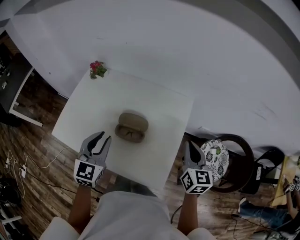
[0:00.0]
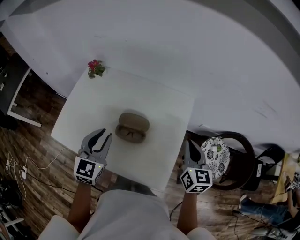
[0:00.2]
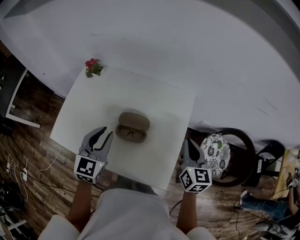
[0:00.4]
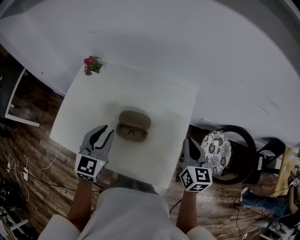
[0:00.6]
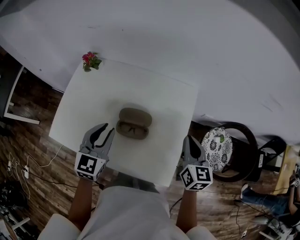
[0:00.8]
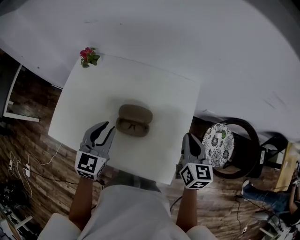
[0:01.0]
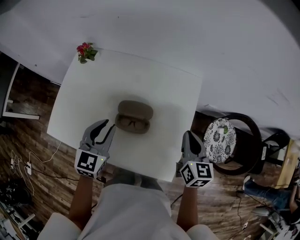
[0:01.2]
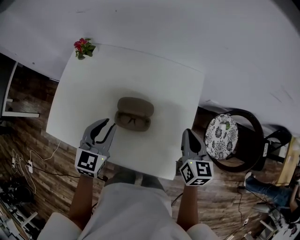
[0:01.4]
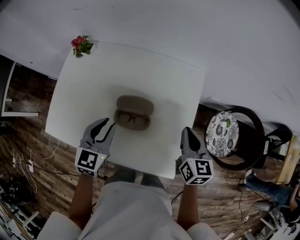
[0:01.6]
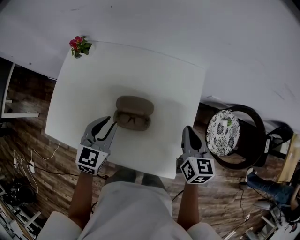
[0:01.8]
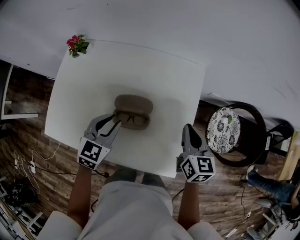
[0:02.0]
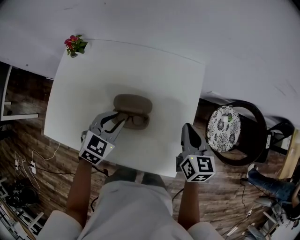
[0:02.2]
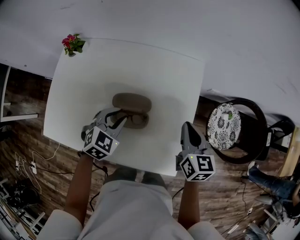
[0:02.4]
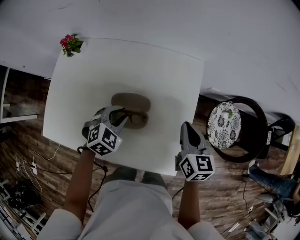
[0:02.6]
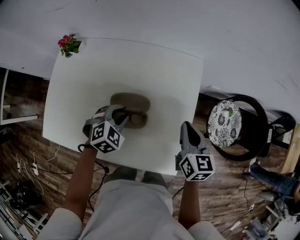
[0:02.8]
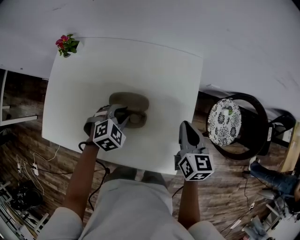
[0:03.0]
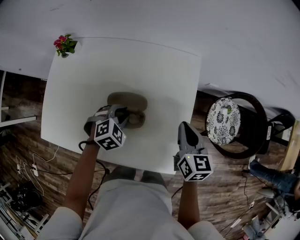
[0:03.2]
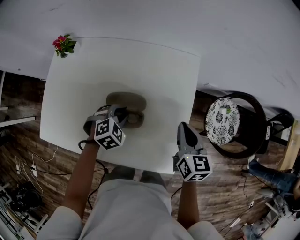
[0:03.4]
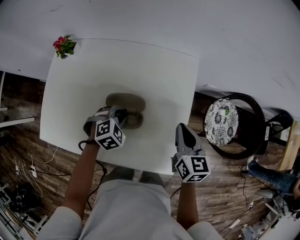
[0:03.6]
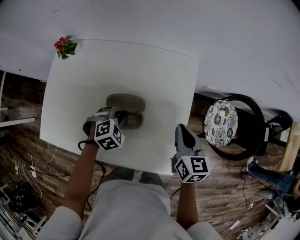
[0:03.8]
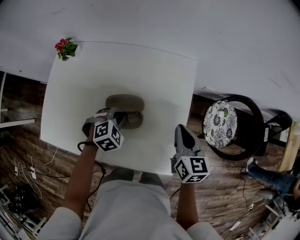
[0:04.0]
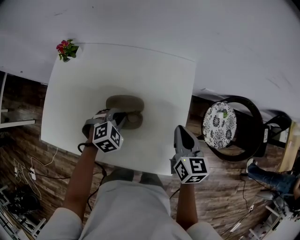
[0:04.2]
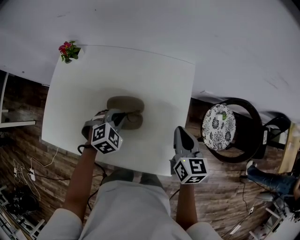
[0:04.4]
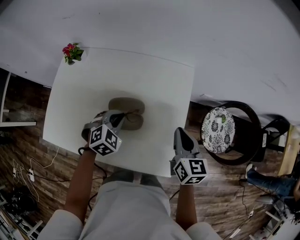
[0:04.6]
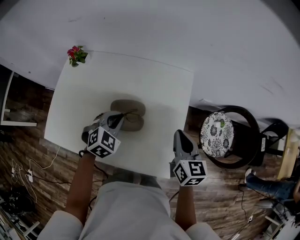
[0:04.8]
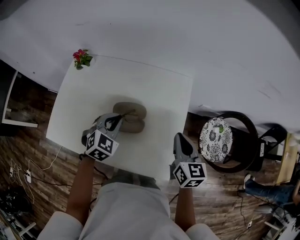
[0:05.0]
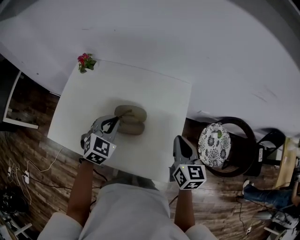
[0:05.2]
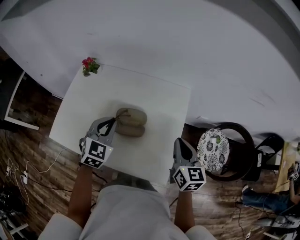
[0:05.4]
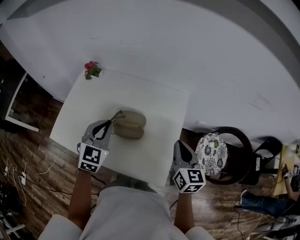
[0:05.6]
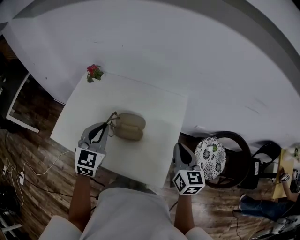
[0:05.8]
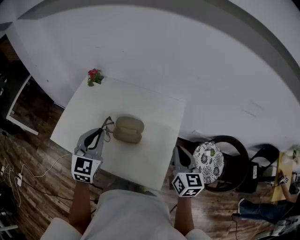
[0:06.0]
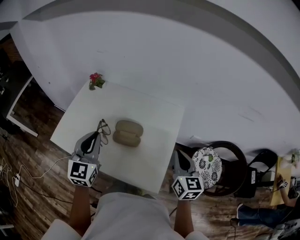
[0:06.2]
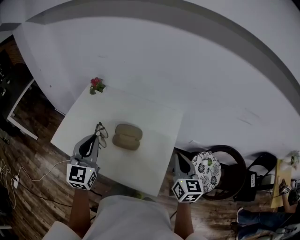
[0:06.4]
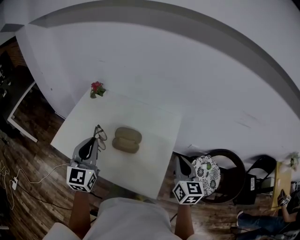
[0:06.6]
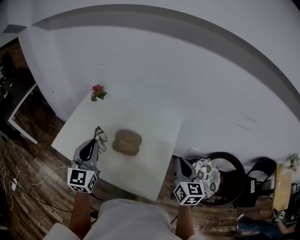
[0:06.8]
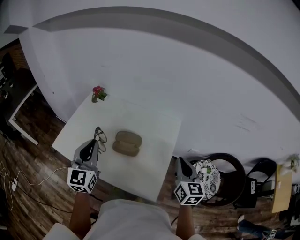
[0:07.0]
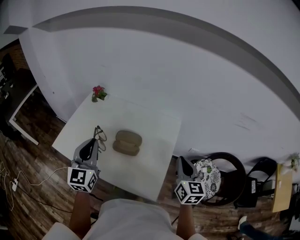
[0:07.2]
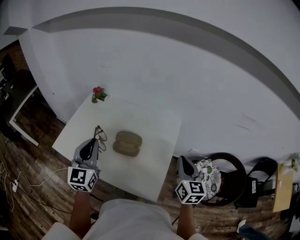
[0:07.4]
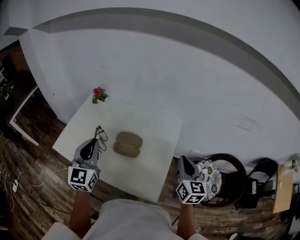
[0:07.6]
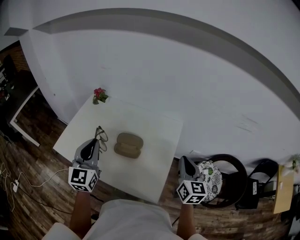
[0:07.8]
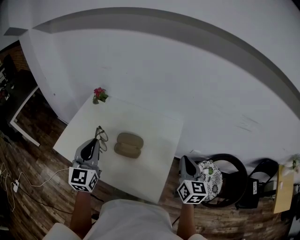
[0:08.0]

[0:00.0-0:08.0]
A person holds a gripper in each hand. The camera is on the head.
0:00.0 to 0:01.6: The left gripper travels downward and forward by about 10 cm; the right gripper travels downward by some 10 cm.
0:01.6 to 0:03.2: The left gripper goes some 15 cm downward and to the right, and angles its fingers downward, by approximately 30 degrees.
0:03.2 to 0:04.8: The right gripper changes place by about 5 cm, while the left gripper heads upward, covering some 10 cm, and closes up.
0:04.8 to 0:06.4: The right gripper travels upward and backward by approximately 10 cm; the left gripper shifts approximately 25 cm upward, backward and to the left, and tips its fingers upward by some 40 degrees.
0:06.4 to 0:08.0: The grippers stay close to where they were, moving slightly.

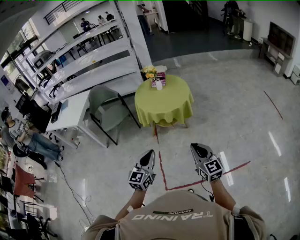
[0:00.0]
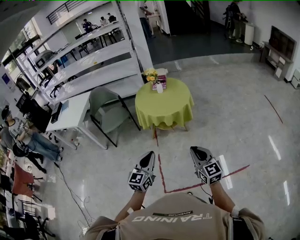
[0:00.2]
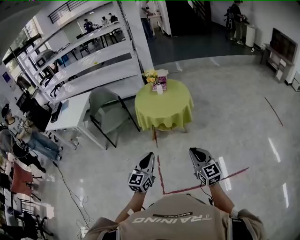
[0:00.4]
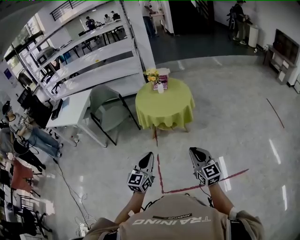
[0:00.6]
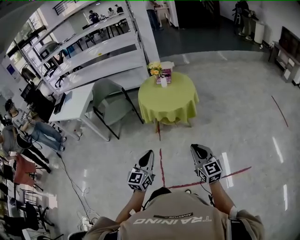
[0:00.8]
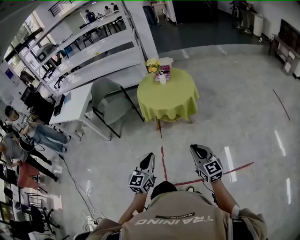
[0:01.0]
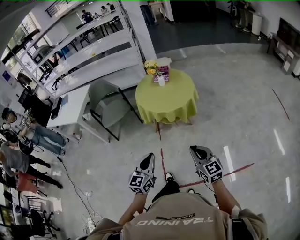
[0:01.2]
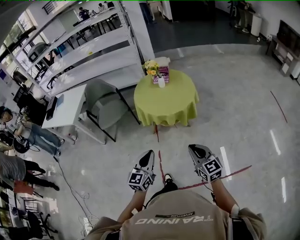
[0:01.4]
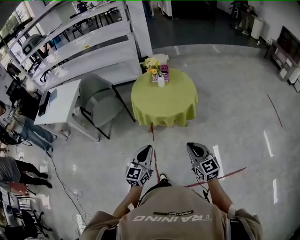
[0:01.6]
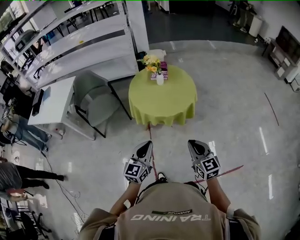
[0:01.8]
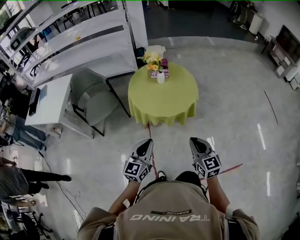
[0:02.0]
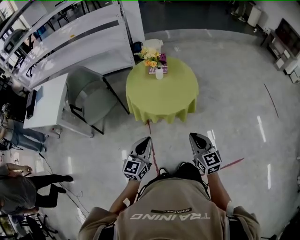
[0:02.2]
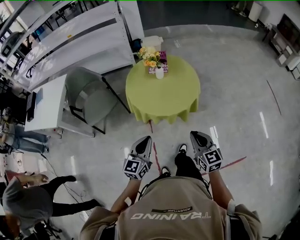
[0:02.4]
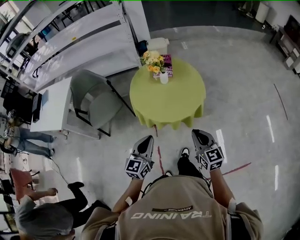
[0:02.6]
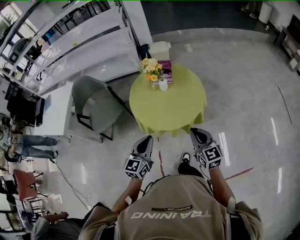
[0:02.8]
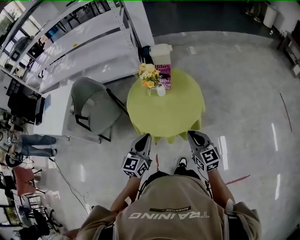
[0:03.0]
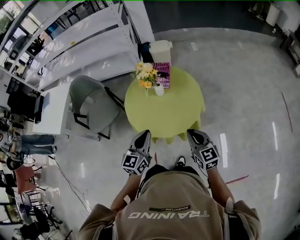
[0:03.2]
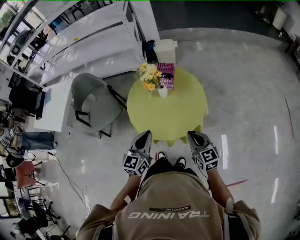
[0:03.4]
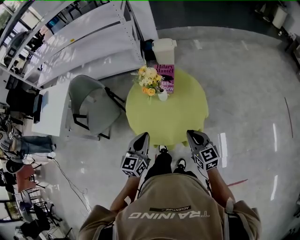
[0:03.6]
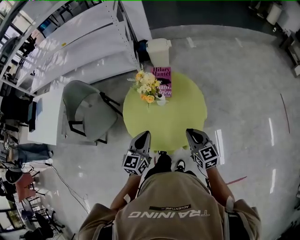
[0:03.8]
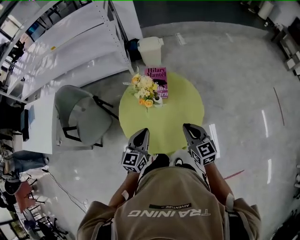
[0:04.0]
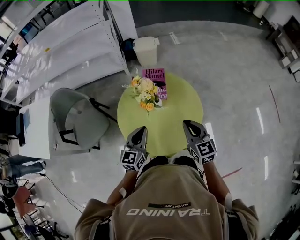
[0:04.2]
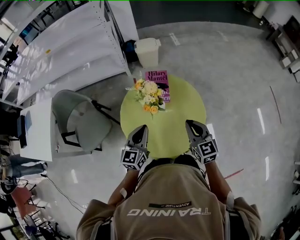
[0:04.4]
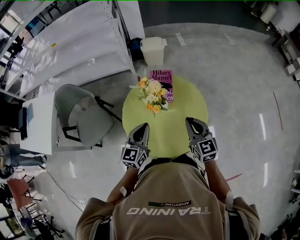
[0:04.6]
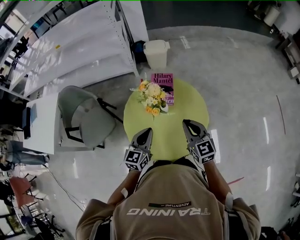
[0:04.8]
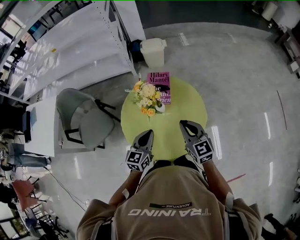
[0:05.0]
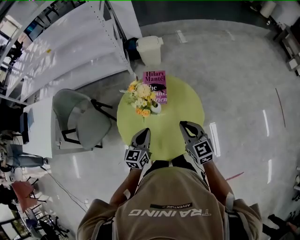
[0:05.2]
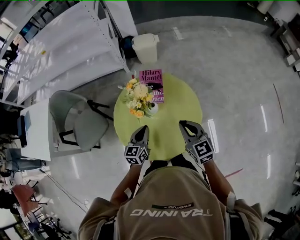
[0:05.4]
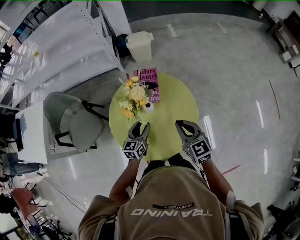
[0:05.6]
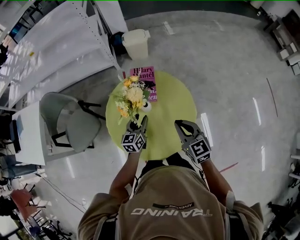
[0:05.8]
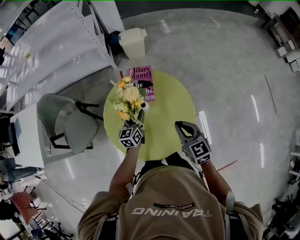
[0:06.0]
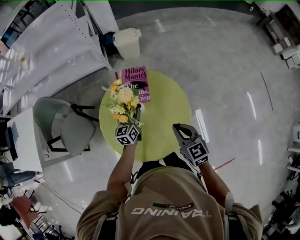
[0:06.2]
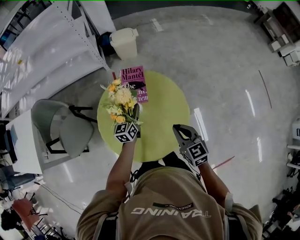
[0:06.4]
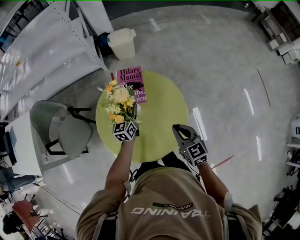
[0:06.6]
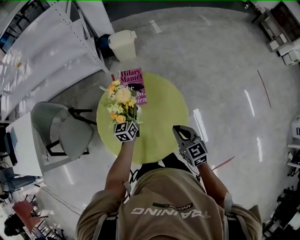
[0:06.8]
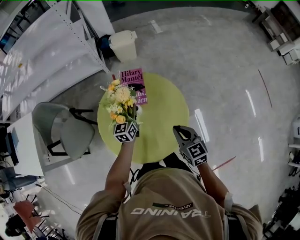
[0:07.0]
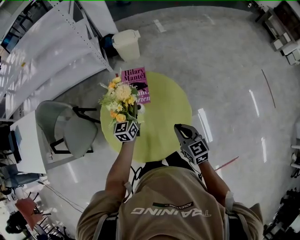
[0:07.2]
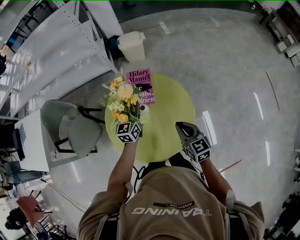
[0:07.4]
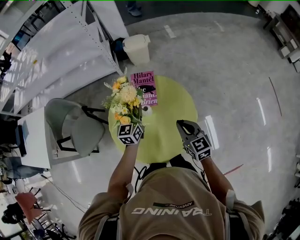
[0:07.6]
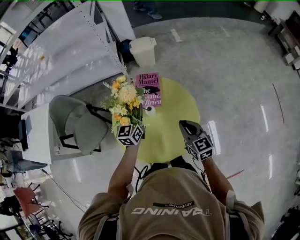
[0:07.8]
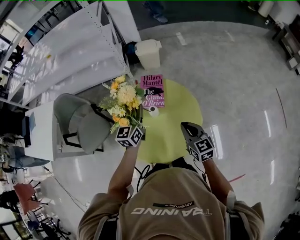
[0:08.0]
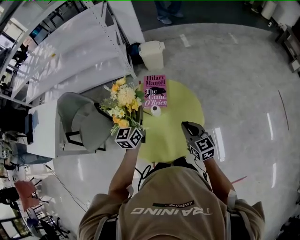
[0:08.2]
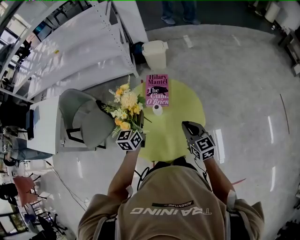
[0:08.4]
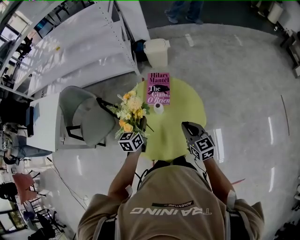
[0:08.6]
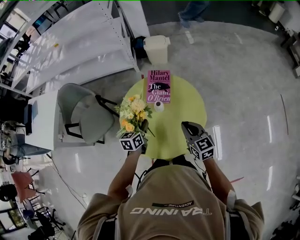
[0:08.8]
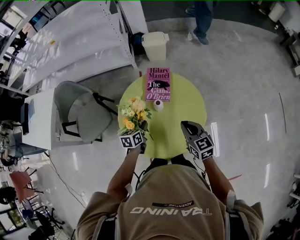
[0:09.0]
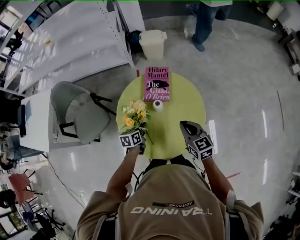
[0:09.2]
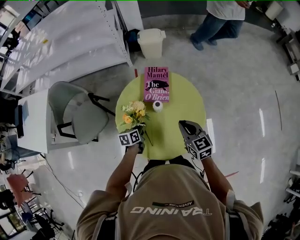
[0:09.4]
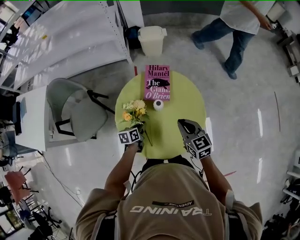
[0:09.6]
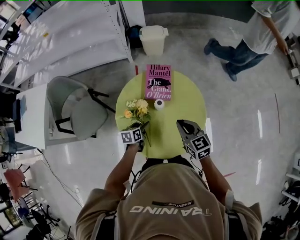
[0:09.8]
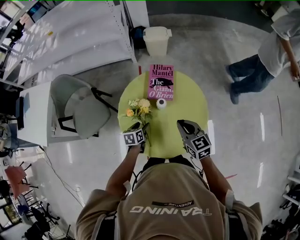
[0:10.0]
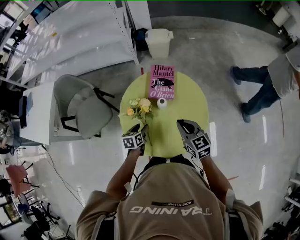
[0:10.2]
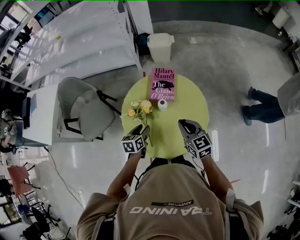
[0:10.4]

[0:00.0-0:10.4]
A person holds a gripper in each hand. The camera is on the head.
0:00.0 to 0:01.4: The grippers both shift forward by roughly 15 cm.
0:01.4 to 0:03.0: The grippers both shift forward by roughly 35 cm.
0:03.0 to 0:04.4: Both grippers move forward, some 25 cm.
0:04.4 to 0:06.0: The right gripper shifts by about 5 cm; the left gripper travels downward and forward by some 20 cm, and opens.
0:06.0 to 0:07.4: The left gripper is displaced upward by some 5 cm, and closes up.
0:07.4 to 0:09.0: The left gripper is displaced backward, downward and to the left by about 15 cm, and rotates approximately 30 degrees.
0:09.0 to 0:10.4: The left gripper travels downward and back again, about 5 cm each way, and opens up.

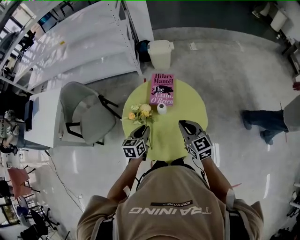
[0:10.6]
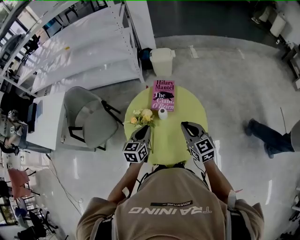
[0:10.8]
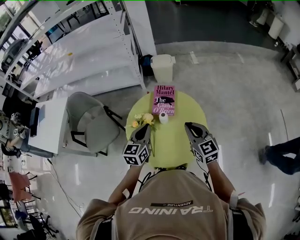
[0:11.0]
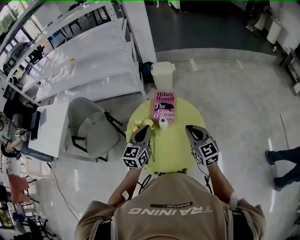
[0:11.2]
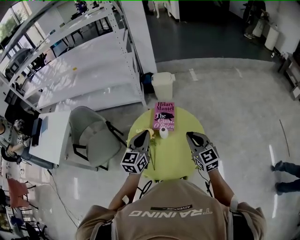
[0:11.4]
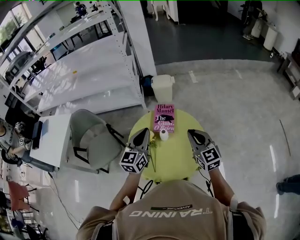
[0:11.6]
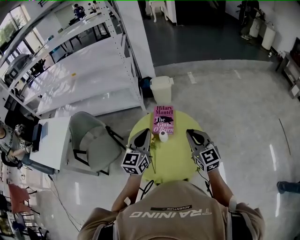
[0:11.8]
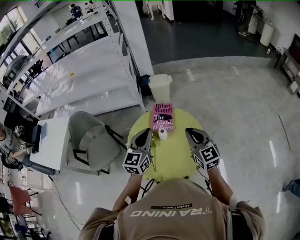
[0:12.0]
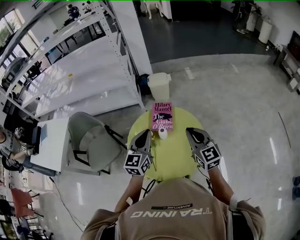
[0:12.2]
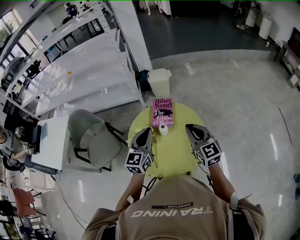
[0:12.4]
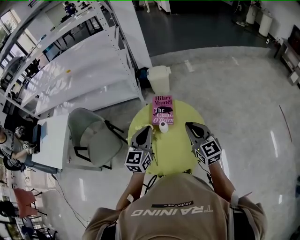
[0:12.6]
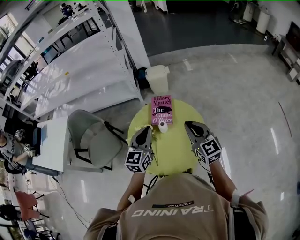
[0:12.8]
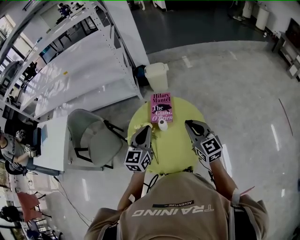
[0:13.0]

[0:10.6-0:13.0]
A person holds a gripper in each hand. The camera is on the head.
0:10.6 to 0:11.8: The left gripper goes approximately 25 cm upward, and turns by approximately 40 degrees. The right gripper goes approximately 15 cm upward.
0:11.8 to 0:13.0: The grippers make only small movements.

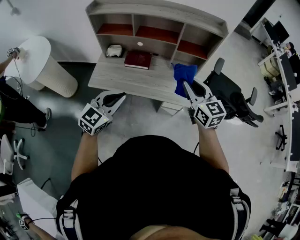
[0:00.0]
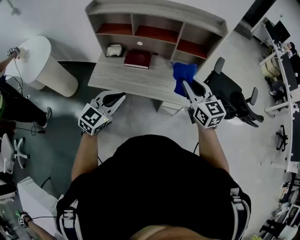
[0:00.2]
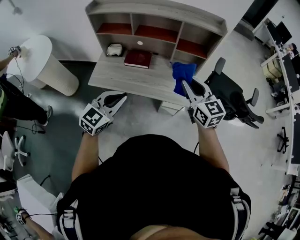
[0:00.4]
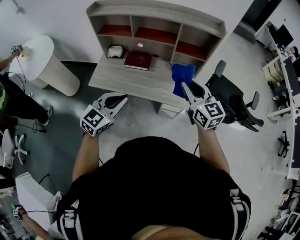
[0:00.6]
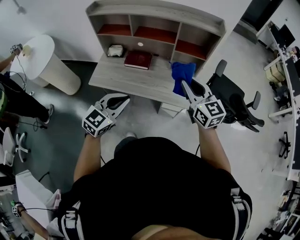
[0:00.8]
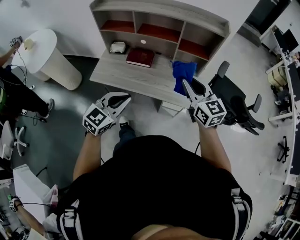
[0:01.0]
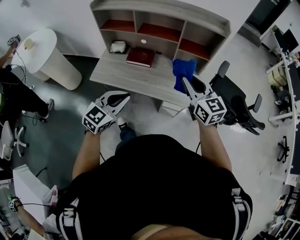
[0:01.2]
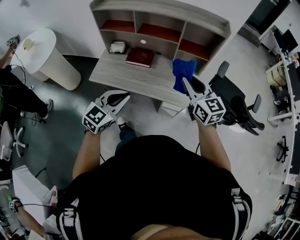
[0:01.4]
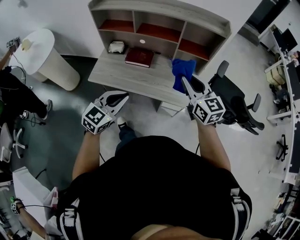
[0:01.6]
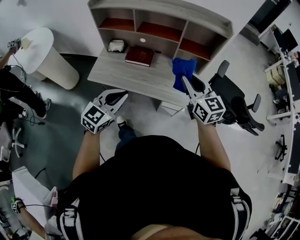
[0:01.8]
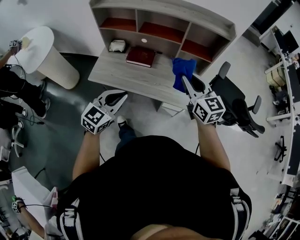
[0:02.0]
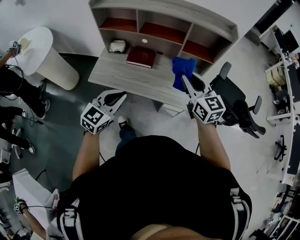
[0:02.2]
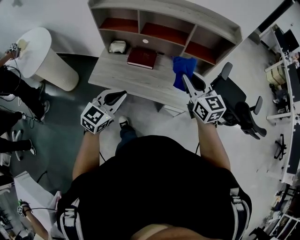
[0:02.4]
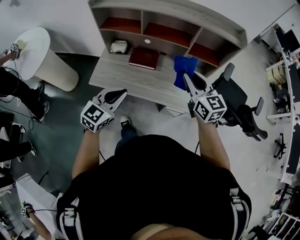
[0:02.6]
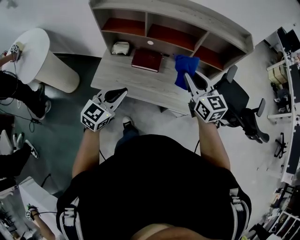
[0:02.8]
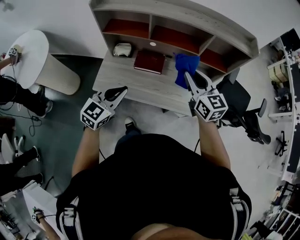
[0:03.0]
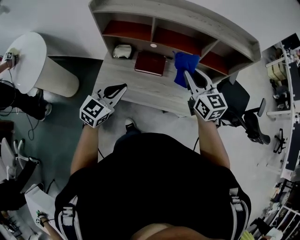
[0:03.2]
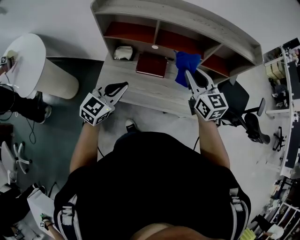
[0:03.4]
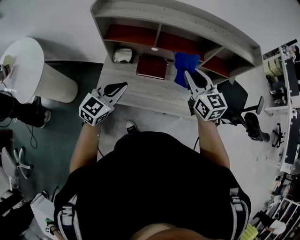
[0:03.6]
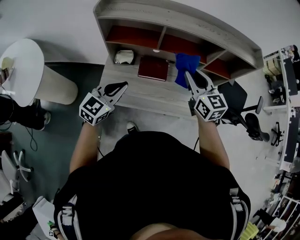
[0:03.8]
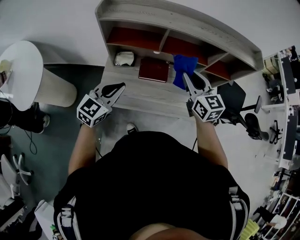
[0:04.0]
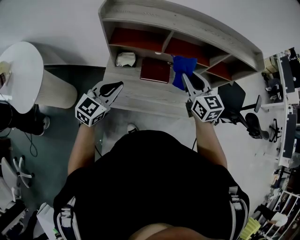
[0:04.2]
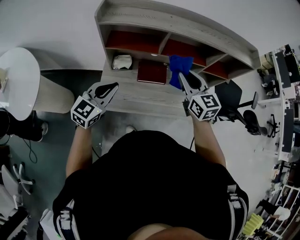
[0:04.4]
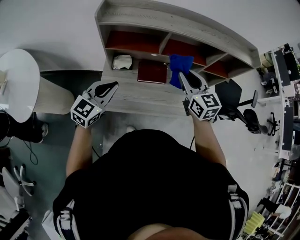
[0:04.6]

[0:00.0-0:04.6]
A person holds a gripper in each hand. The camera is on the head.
0:00.0 to 0:01.6: The left gripper goes roughly 5 cm to the right.
0:01.6 to 0:03.0: Both grippers move forward and to the left, some 20 cm.
0:03.0 to 0:04.6: The right gripper travels to the left by some 15 cm, while the left gripper moves to the left and forward, approximately 20 cm.
